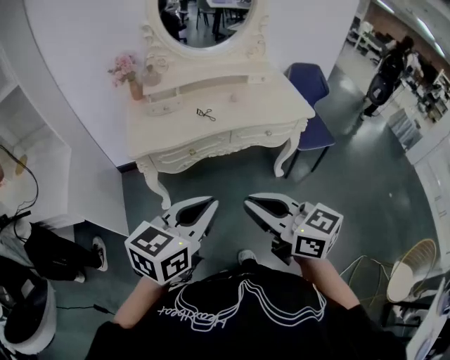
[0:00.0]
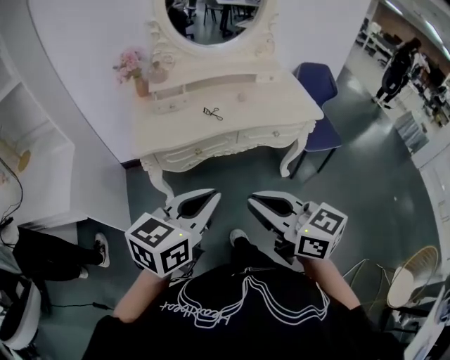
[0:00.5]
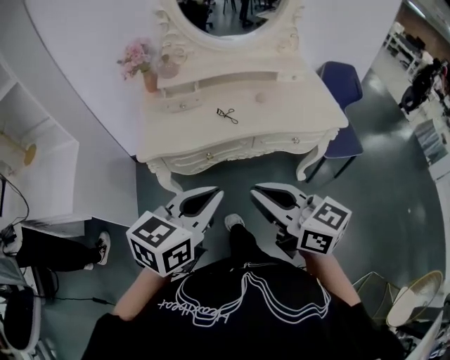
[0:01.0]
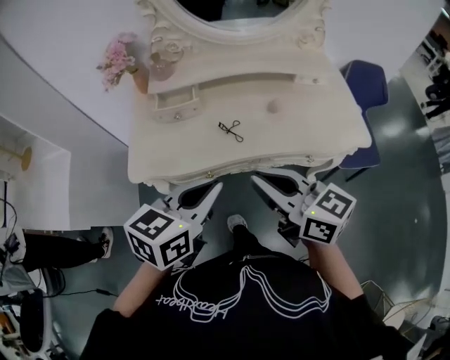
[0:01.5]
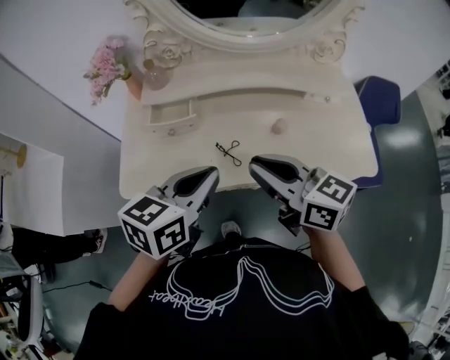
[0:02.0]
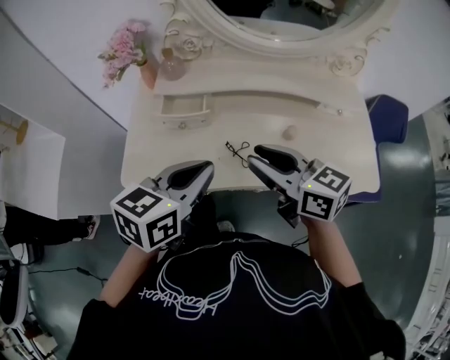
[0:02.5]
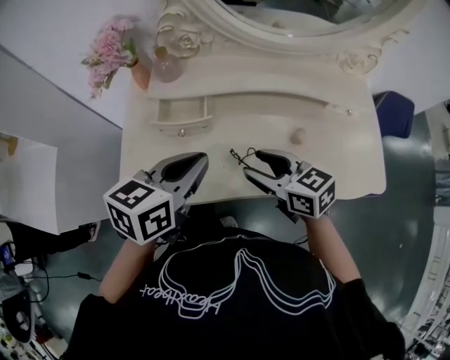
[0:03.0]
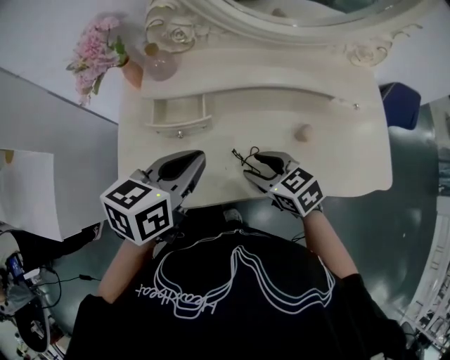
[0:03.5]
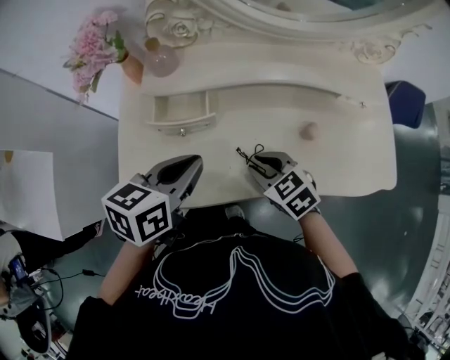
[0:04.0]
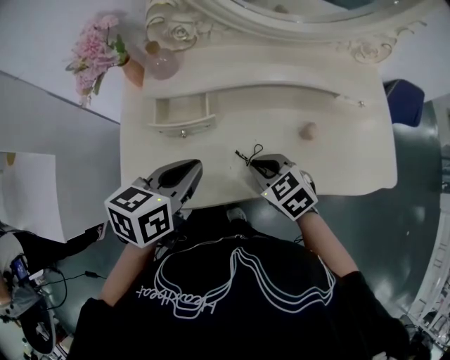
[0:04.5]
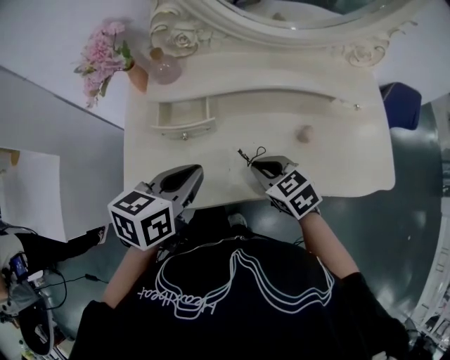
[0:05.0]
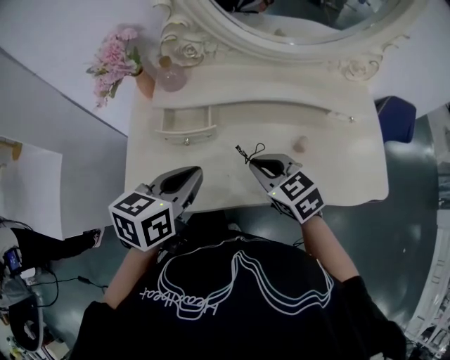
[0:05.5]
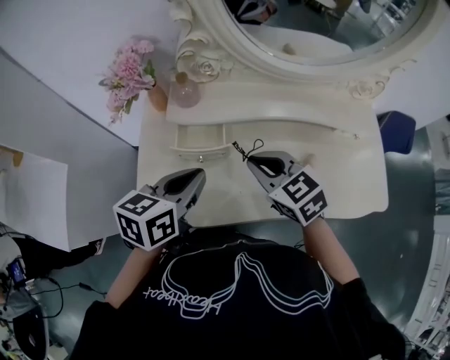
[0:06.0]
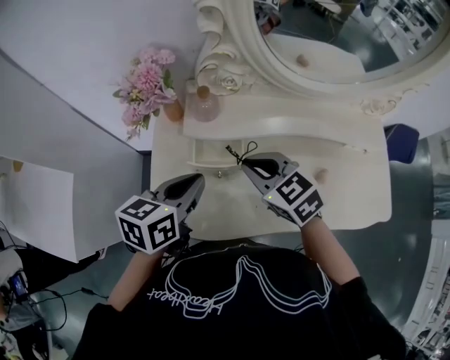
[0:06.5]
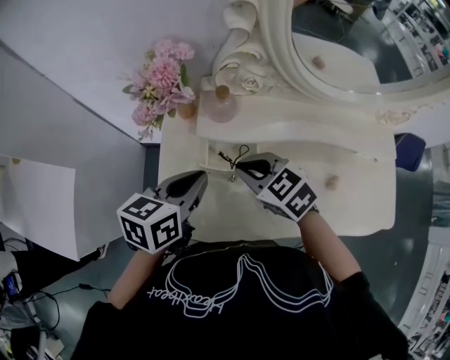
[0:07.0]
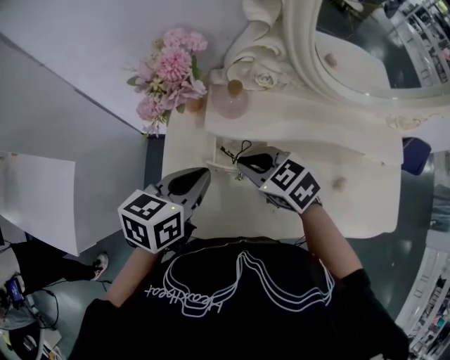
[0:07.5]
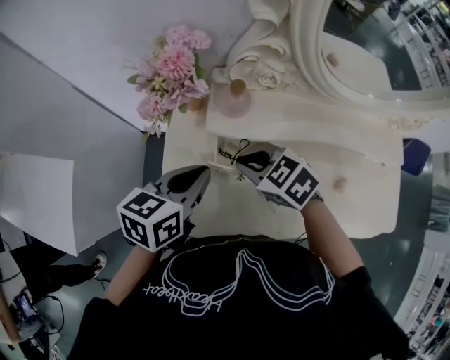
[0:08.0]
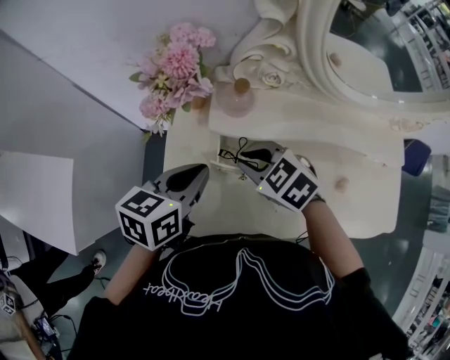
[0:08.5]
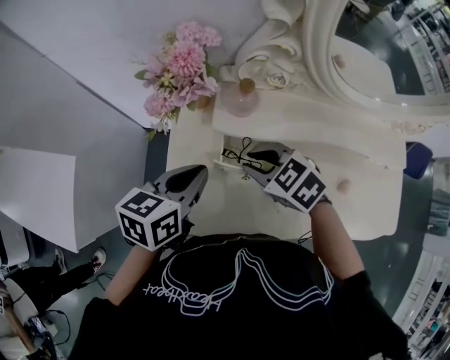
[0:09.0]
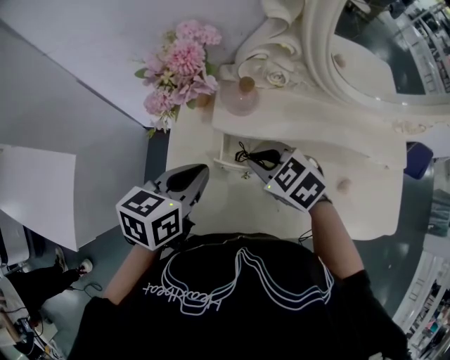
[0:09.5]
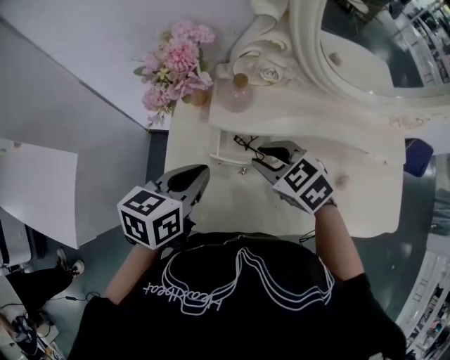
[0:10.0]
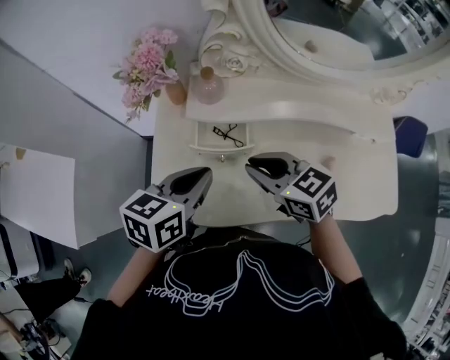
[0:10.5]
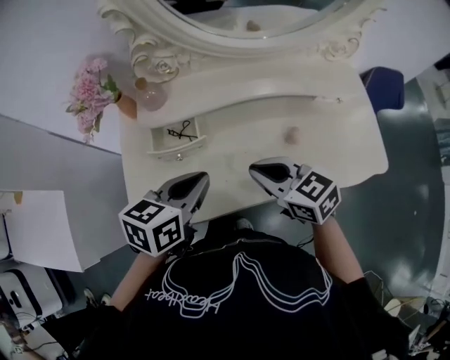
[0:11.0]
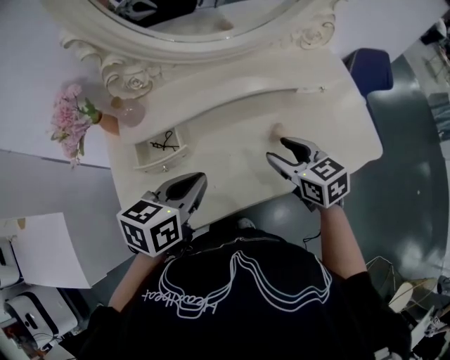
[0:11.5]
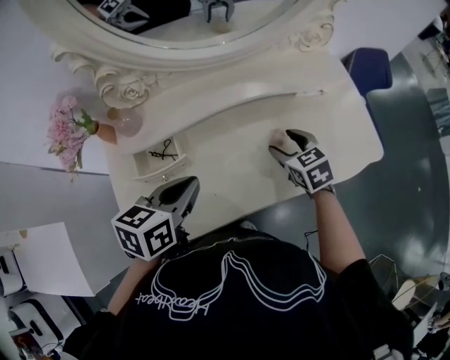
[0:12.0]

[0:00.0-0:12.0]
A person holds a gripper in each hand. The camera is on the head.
0:00.0 to 0:02.0: The pair of grippers is taken forward, some 40 cm.
0:02.0 to 0:04.0: The left gripper goes about 15 cm forward, to the left and downward. Meanwhile the right gripper heads downward, covering about 20 cm, angles its fingers downward, by approximately 40 degrees, and opens, then closes once more.
0:04.0 to 0:06.0: The right gripper moves upward and forward, roughly 15 cm. Meanwhile the left gripper shifts by some 5 cm.
0:06.0 to 0:08.0: The right gripper shifts some 15 cm to the left, forward and downward, and changes its angle by about 20 degrees. Meanwhile the left gripper shifts about 10 cm to the left and forward.
0:08.0 to 0:10.0: The grippers make only small movements.
0:10.0 to 0:12.0: The right gripper moves roughly 30 cm, rotates some 40 degrees, and opens; the left gripper shifts by roughly 20 cm.

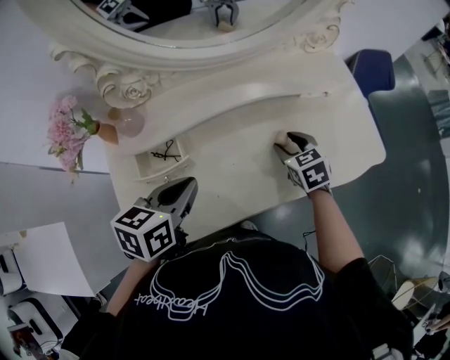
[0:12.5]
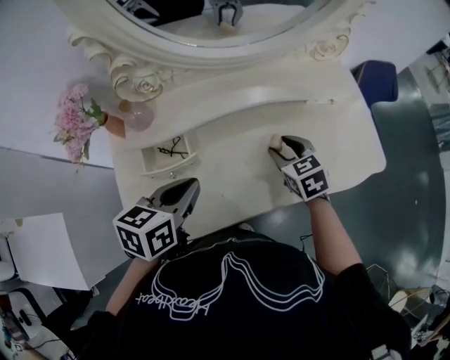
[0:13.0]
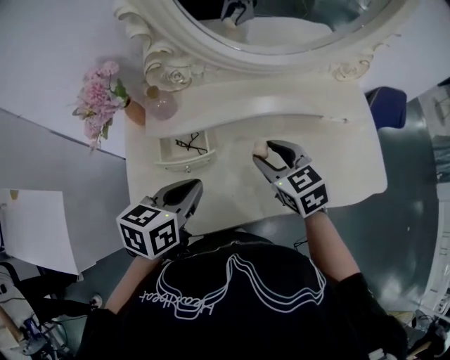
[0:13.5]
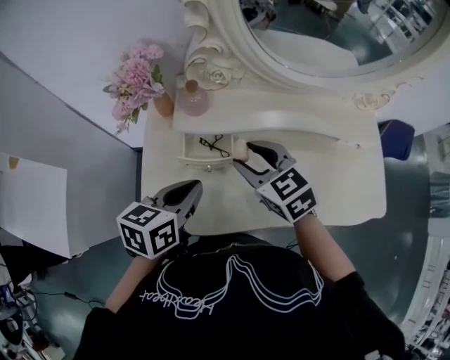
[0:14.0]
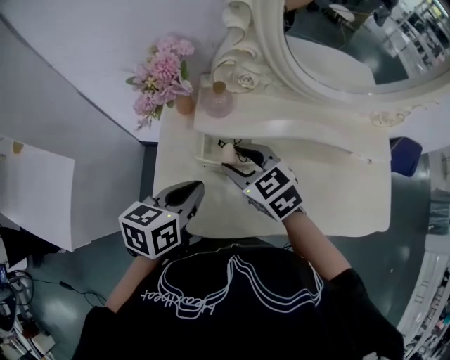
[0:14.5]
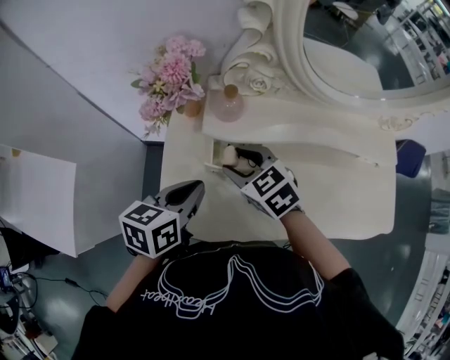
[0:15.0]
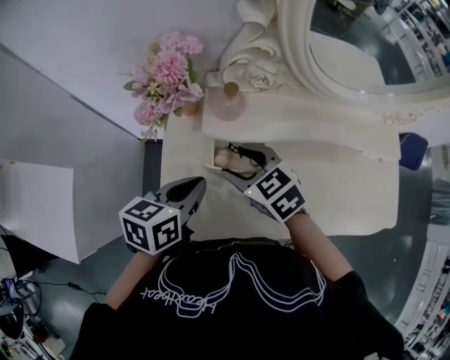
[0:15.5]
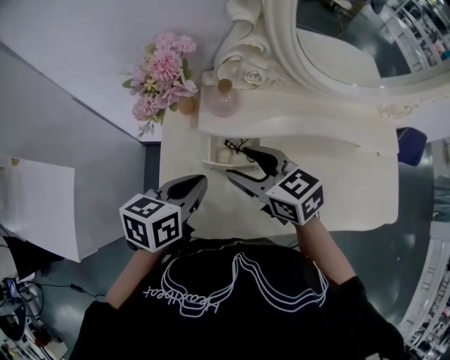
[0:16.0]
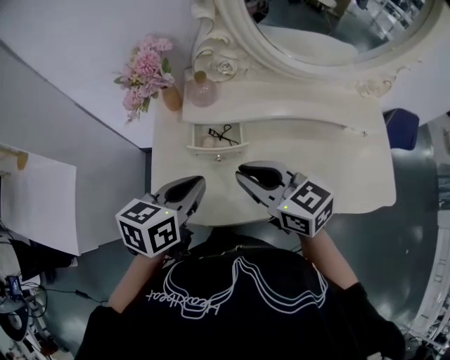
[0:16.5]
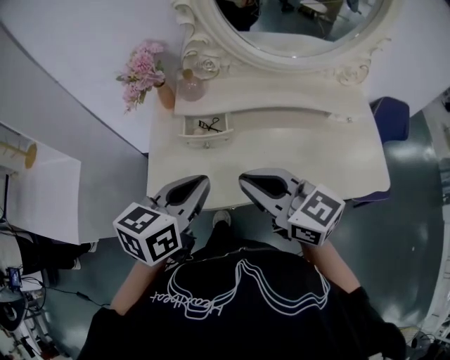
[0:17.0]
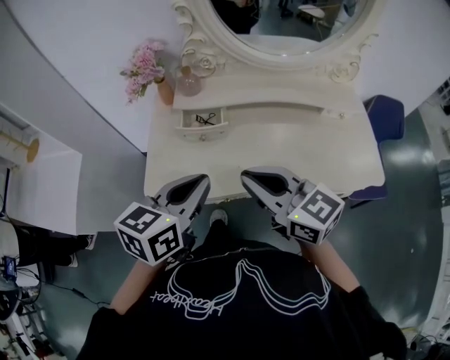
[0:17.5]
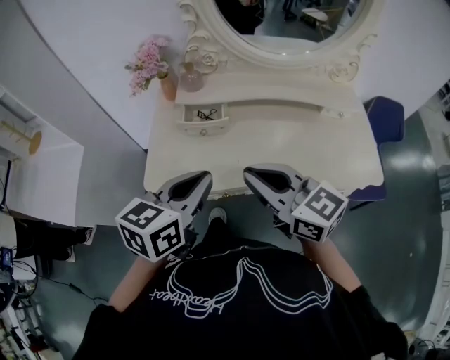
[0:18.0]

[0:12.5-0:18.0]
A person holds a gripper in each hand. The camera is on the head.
0:12.5 to 0:14.5: The right gripper ends up some 35 cm from where it was, and rotates about 40 degrees; the left gripper shifts by about 15 cm, and swivels about 20 degrees.
0:14.5 to 0:16.0: There are only small adjustments of the grippers.
0:16.0 to 0:18.0: The left gripper heads backward, upward and to the right, covering about 25 cm; the right gripper is displaced backward and upward by approximately 25 cm, turns by some 20 degrees, and closes up.

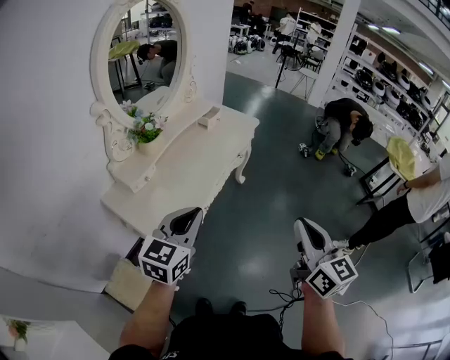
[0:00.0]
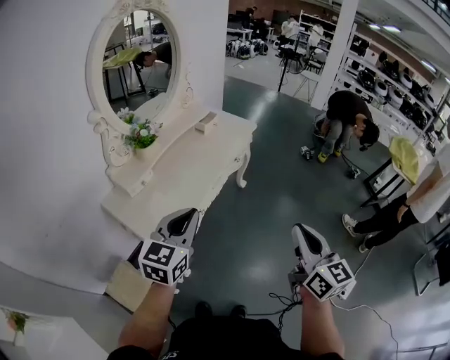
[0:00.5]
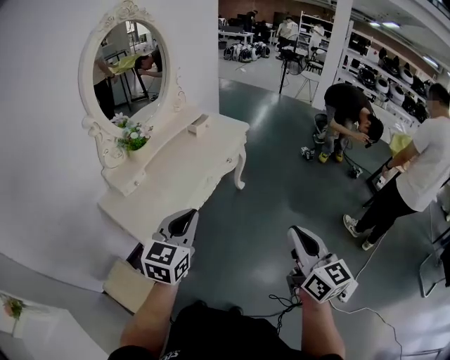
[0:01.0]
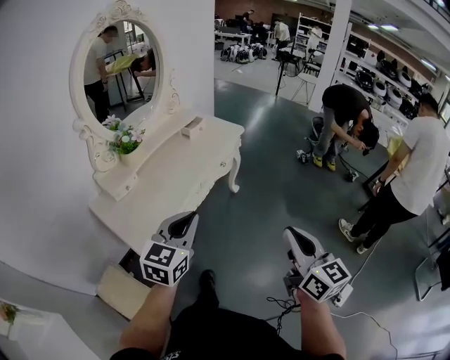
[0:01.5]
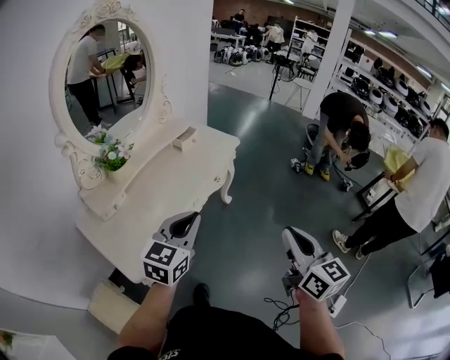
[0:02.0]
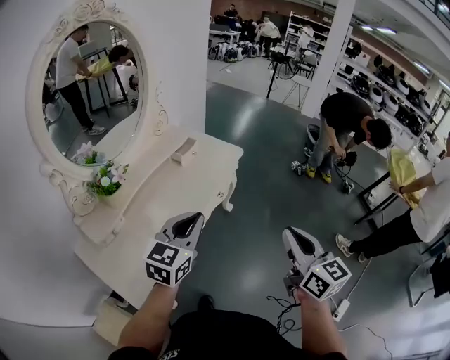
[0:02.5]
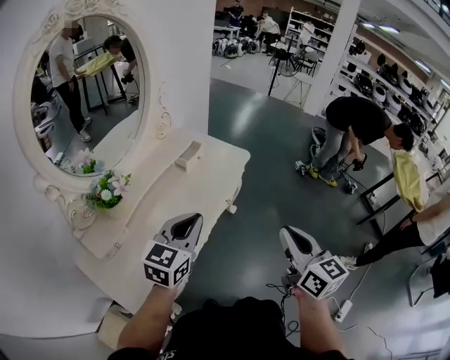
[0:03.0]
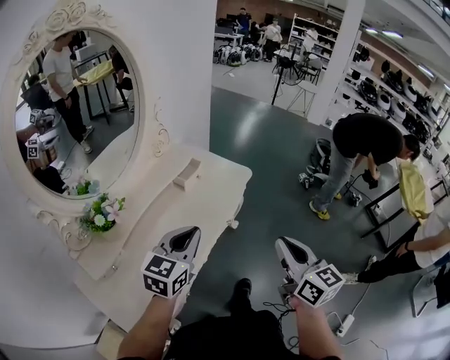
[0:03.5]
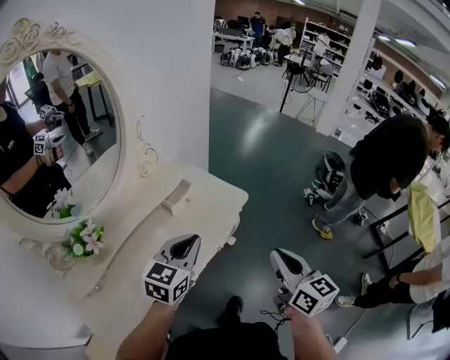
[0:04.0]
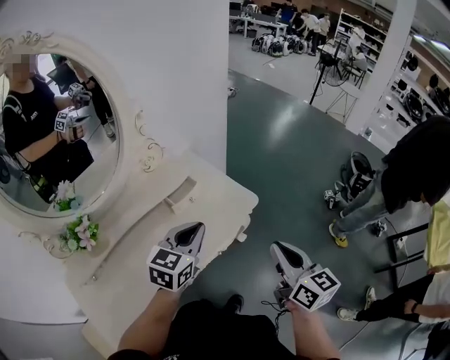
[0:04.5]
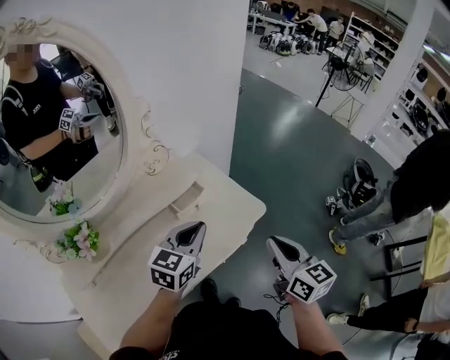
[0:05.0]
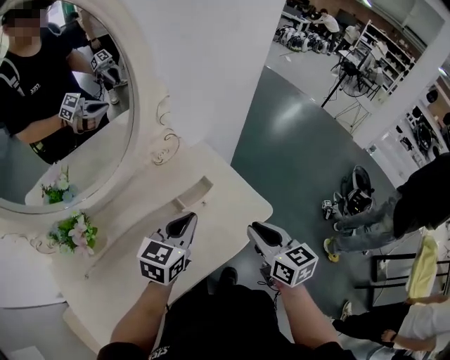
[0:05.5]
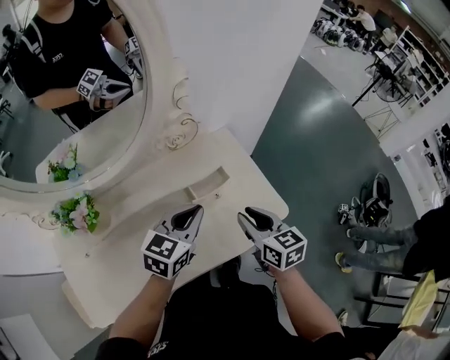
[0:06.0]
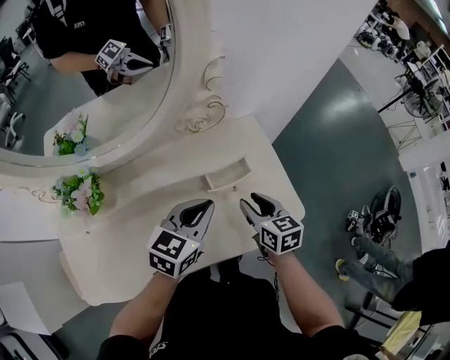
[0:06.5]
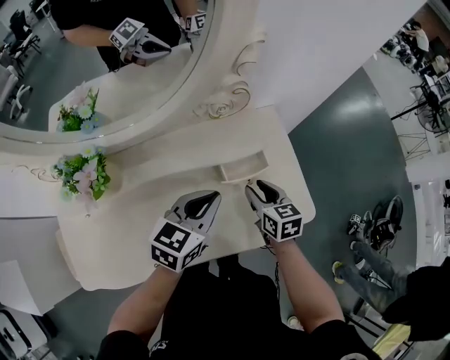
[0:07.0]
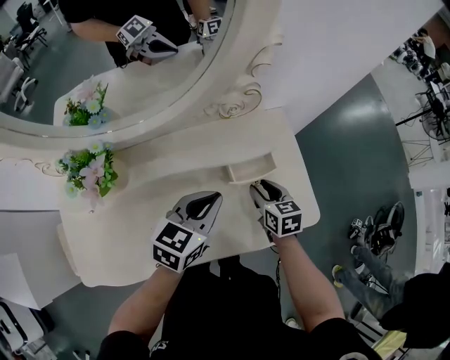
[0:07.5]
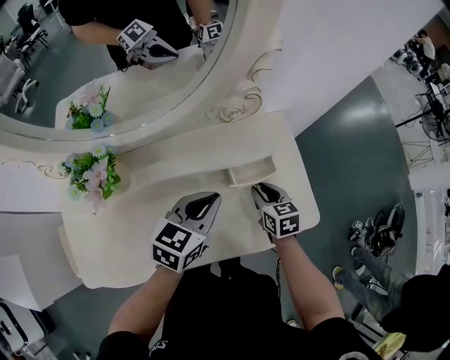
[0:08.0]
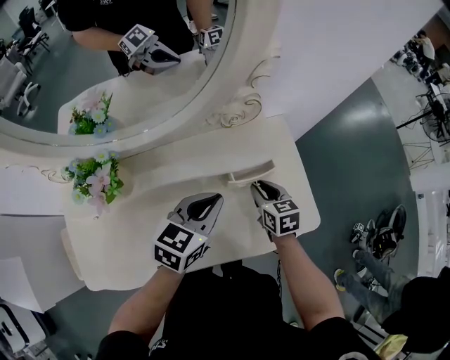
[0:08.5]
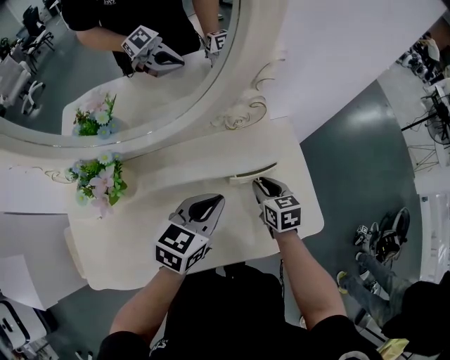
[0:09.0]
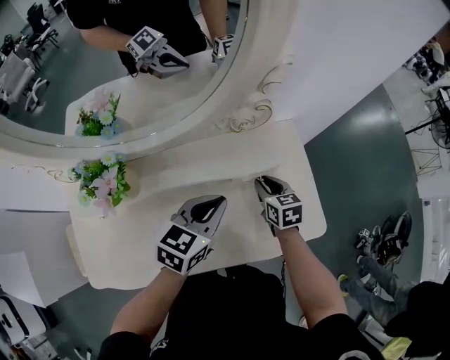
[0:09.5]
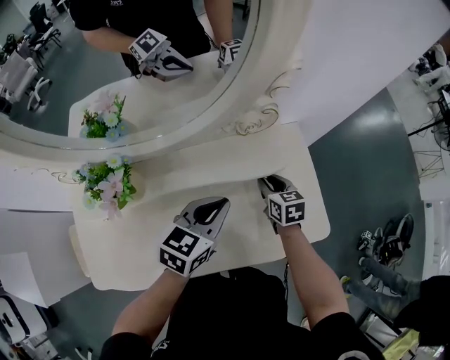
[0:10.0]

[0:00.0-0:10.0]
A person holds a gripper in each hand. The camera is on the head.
0:00.0 to 0:02.0: Both grippers move to the right and forward, about 15 cm.
0:02.0 to 0:04.0: Both grippers travel together forward, roughly 35 cm.
0:04.0 to 0:06.0: The right gripper moves about 35 cm, turns by approximately 40 degrees, and opens; the left gripper shifts by roughly 20 cm, and rotates some 20 degrees.
0:06.0 to 0:08.0: The left gripper is displaced to the left by roughly 5 cm. Meanwhile the right gripper travels downward, forward and to the left by roughly 20 cm, and swivels about 20 degrees.
0:08.0 to 0:10.0: The right gripper heads forward, covering some 5 cm.
